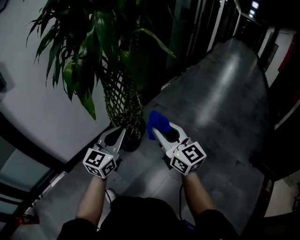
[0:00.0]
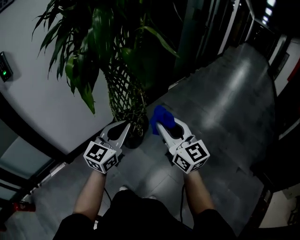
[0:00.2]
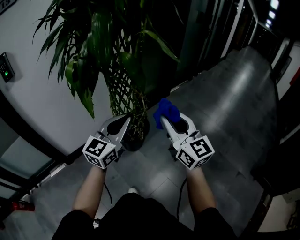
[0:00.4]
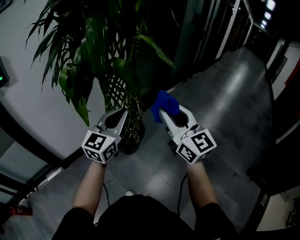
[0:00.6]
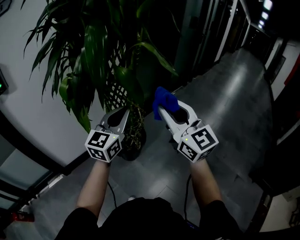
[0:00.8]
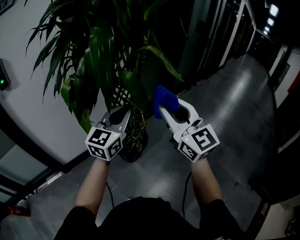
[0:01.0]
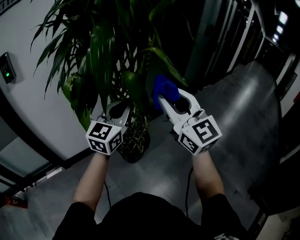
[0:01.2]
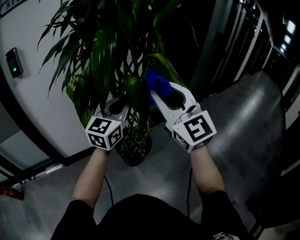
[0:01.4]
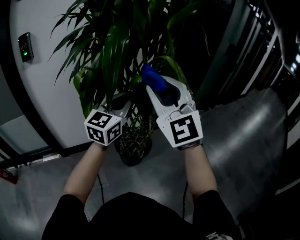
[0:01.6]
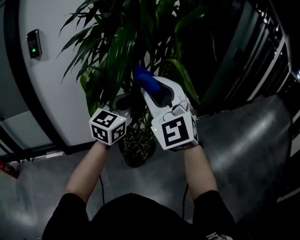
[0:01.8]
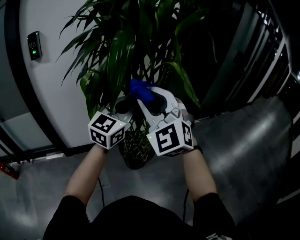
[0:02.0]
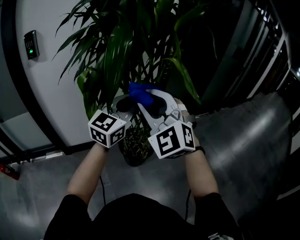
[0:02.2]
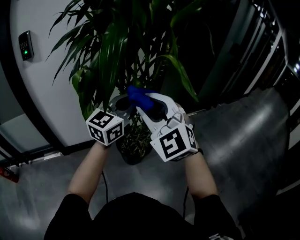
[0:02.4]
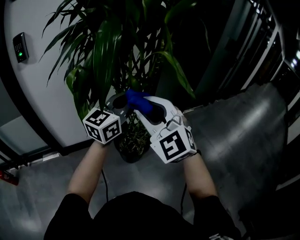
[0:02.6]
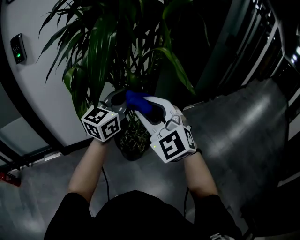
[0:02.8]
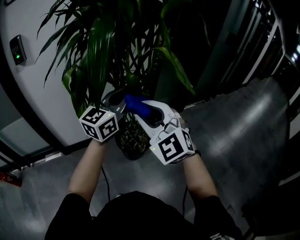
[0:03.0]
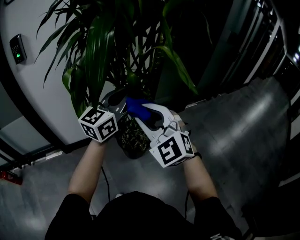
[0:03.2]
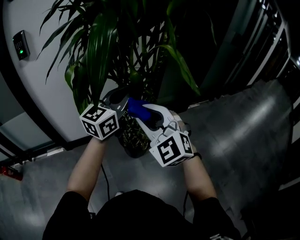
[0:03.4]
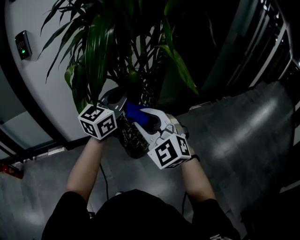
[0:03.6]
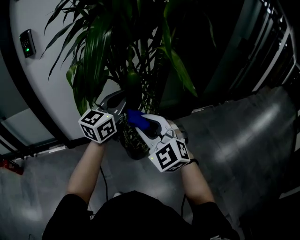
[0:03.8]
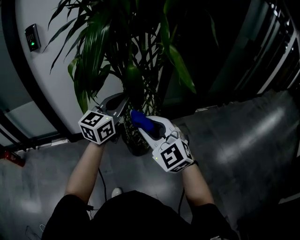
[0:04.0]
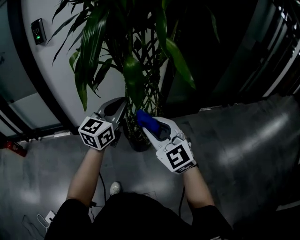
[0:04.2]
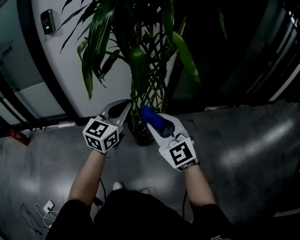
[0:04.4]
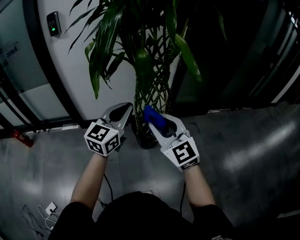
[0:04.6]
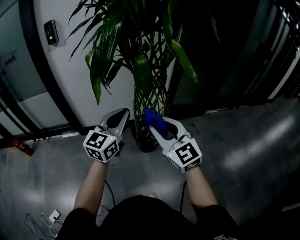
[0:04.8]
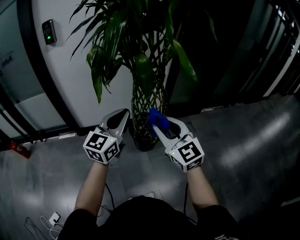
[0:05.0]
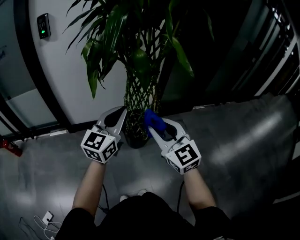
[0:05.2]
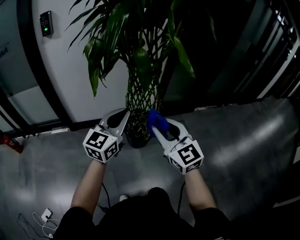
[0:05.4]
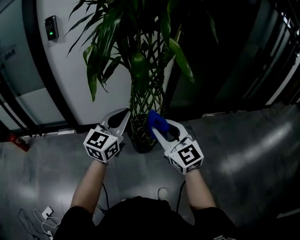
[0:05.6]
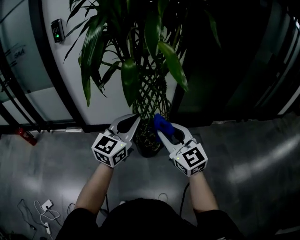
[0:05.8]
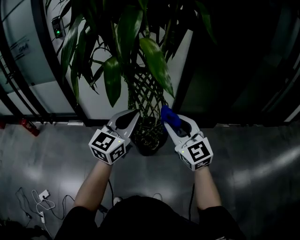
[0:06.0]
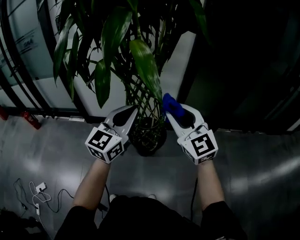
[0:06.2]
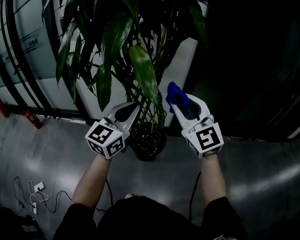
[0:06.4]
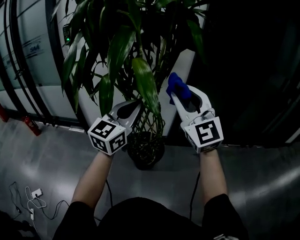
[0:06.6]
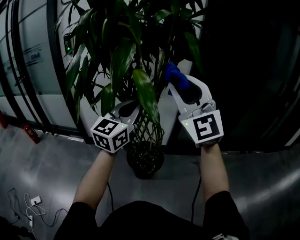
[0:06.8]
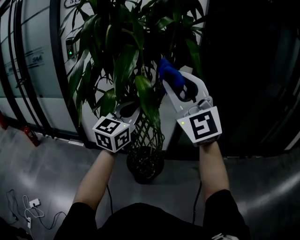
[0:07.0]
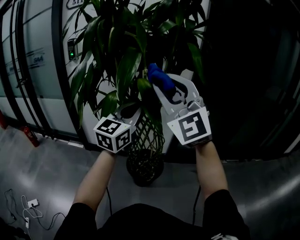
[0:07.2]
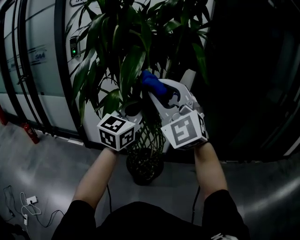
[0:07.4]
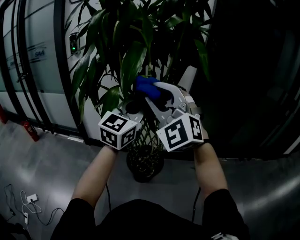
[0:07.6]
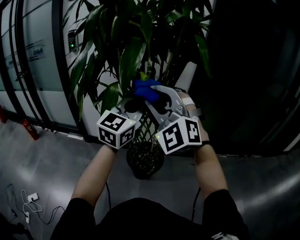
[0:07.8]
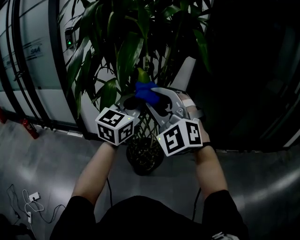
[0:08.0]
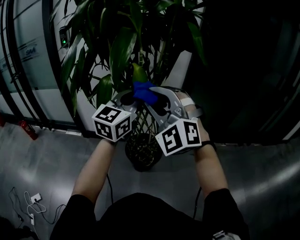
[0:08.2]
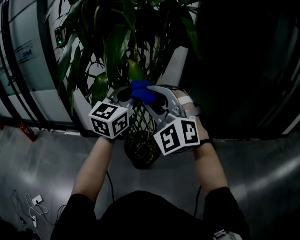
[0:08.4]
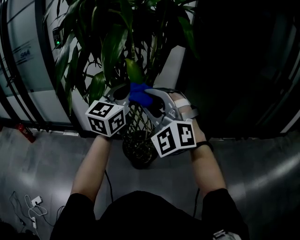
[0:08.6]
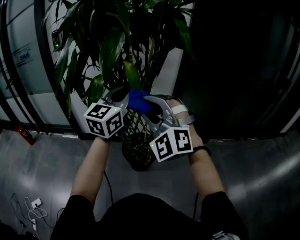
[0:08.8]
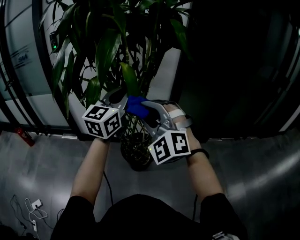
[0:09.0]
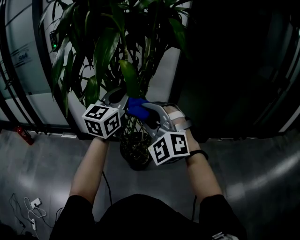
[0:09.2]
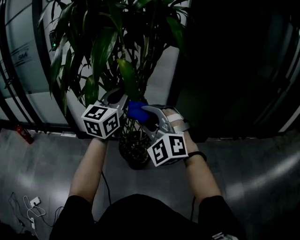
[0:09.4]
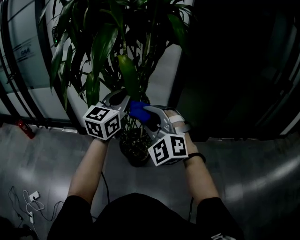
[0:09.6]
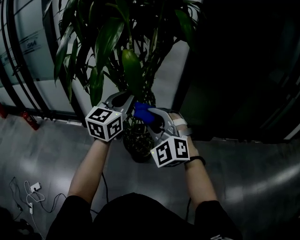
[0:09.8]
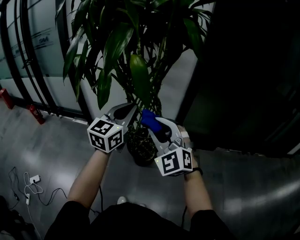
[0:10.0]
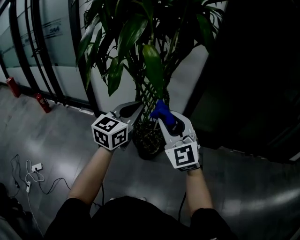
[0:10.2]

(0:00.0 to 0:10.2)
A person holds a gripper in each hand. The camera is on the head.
0:00.0 - 0:01.4: The left gripper shifts about 20 cm forward and upward, and changes its angle by roughly 20 degrees; the right gripper travels upward and forward by about 25 cm, and swivels approximately 30 degrees.
0:01.4 - 0:03.0: The right gripper goes approximately 10 cm downward, and rotates roughly 30 degrees.
0:03.0 - 0:04.4: The right gripper shifts approximately 10 cm downward, backward and to the right, and changes its angle by approximately 20 degrees. Meanwhile the left gripper heads downward and backward, covering some 10 cm, and swivels approximately 20 degrees.
0:04.4 - 0:05.8: Both grippers move to the right, roughly 10 cm.
0:05.8 - 0:07.2: The right gripper goes roughly 30 cm upward, and rotates some 40 degrees, while the left gripper is displaced upward, forward and to the right by some 20 cm.
0:07.2 - 0:08.8: The right gripper heads downward, covering approximately 15 cm, and changes its angle by some 30 degrees.
0:08.8 - 0:10.2: The right gripper moves downward and to the right, some 10 cm, and changes its angle by roughly 40 degrees. Meanwhile the left gripper travels downward and backward by some 10 cm.

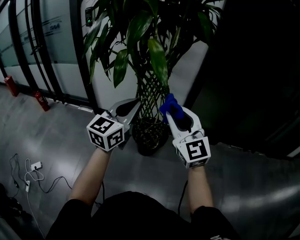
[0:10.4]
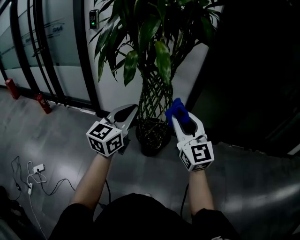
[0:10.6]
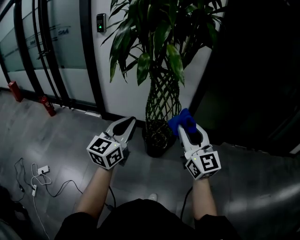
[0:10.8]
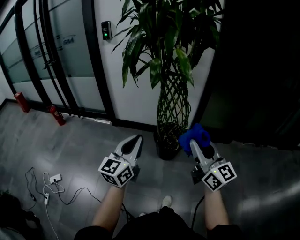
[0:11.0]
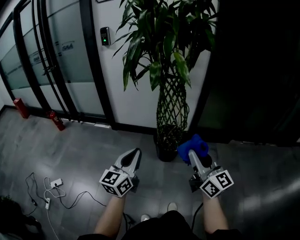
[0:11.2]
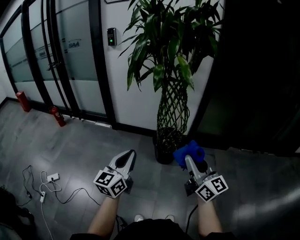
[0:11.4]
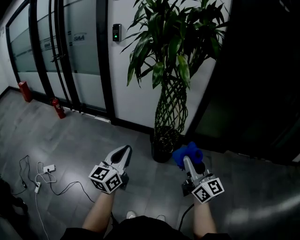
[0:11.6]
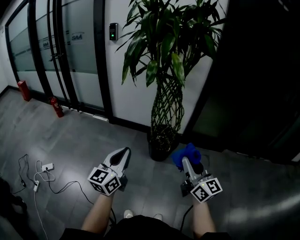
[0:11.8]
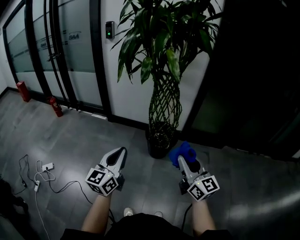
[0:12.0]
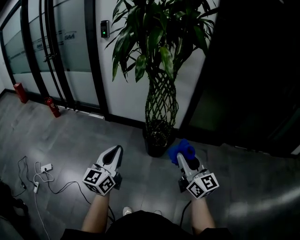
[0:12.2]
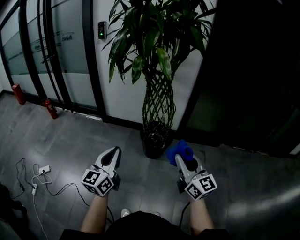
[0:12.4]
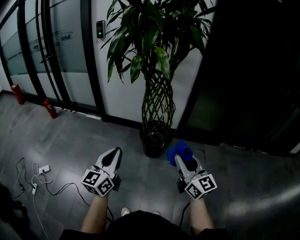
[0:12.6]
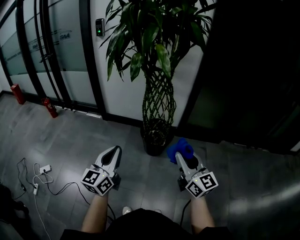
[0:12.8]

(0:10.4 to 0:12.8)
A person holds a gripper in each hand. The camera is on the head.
0:10.4 - 0:11.6: The left gripper heads backward and to the left, covering roughly 30 cm. The right gripper is displaced backward by roughly 25 cm, and changes its angle by about 30 degrees.
0:11.6 - 0:12.8: Both grippers travel together to the right, some 5 cm.

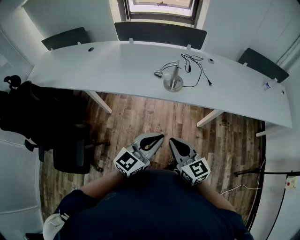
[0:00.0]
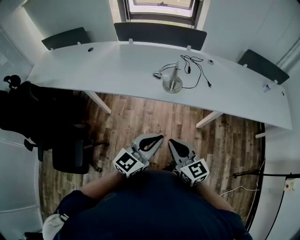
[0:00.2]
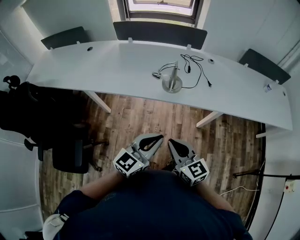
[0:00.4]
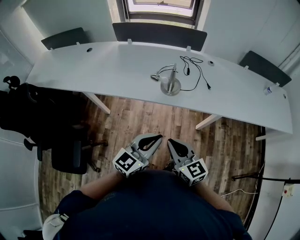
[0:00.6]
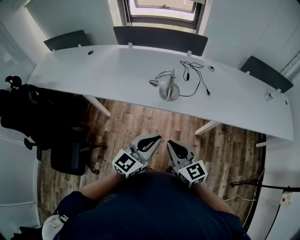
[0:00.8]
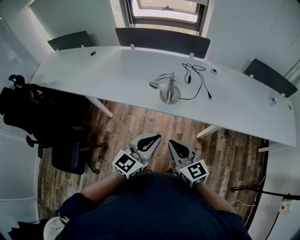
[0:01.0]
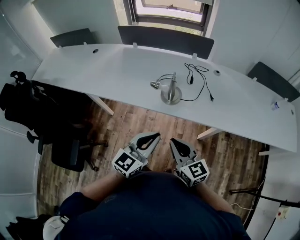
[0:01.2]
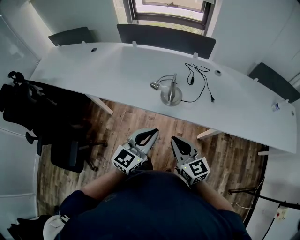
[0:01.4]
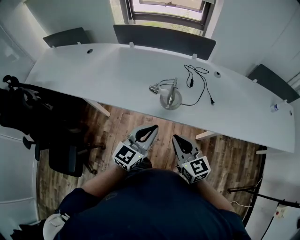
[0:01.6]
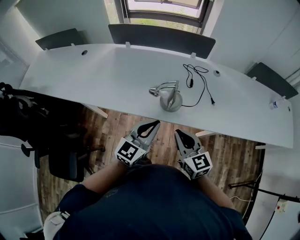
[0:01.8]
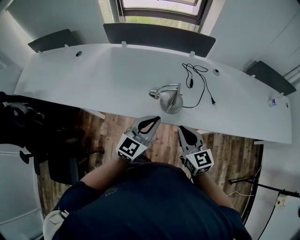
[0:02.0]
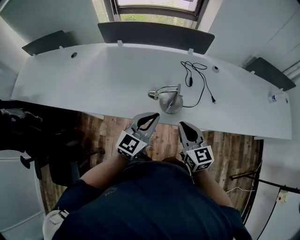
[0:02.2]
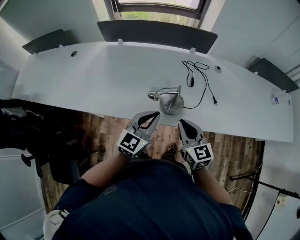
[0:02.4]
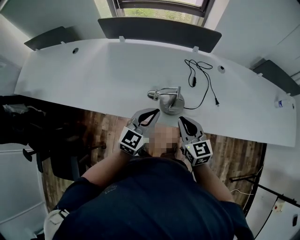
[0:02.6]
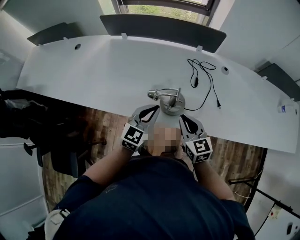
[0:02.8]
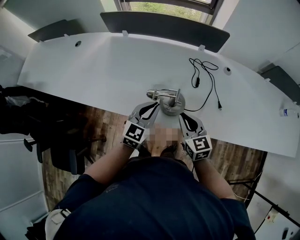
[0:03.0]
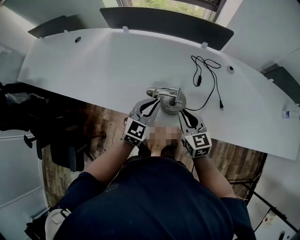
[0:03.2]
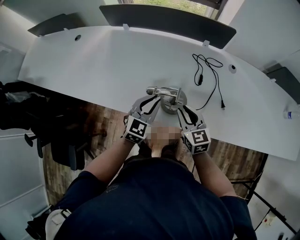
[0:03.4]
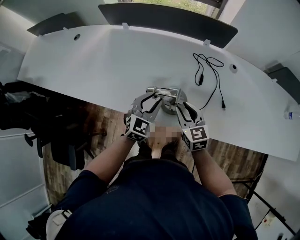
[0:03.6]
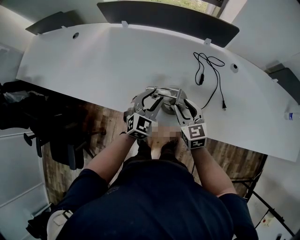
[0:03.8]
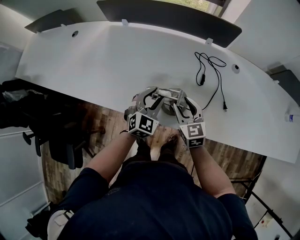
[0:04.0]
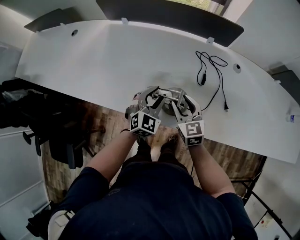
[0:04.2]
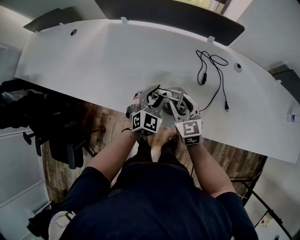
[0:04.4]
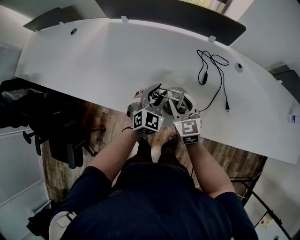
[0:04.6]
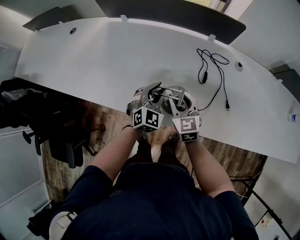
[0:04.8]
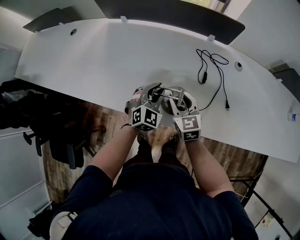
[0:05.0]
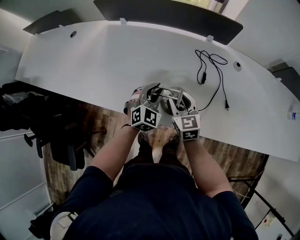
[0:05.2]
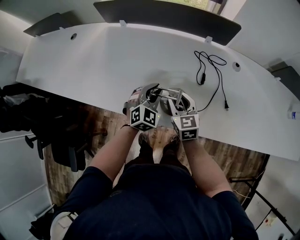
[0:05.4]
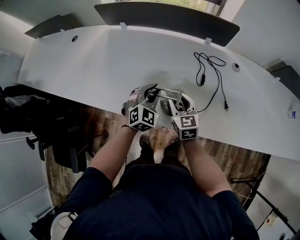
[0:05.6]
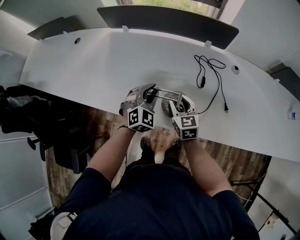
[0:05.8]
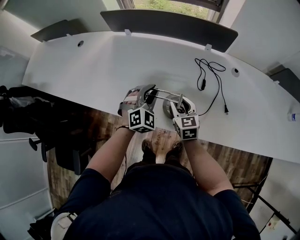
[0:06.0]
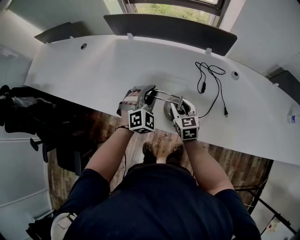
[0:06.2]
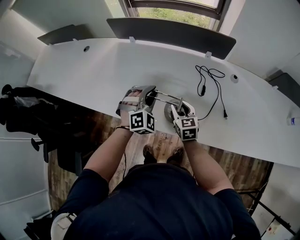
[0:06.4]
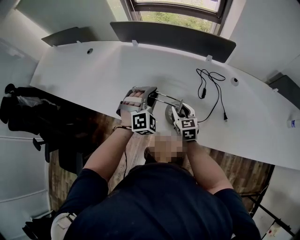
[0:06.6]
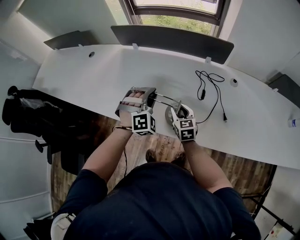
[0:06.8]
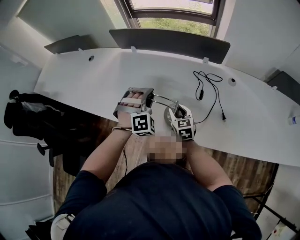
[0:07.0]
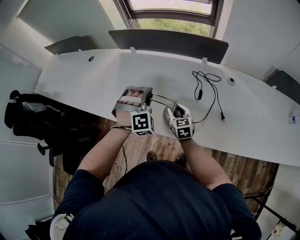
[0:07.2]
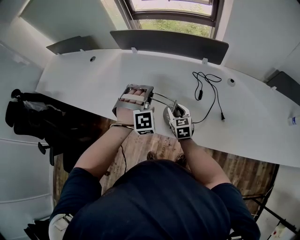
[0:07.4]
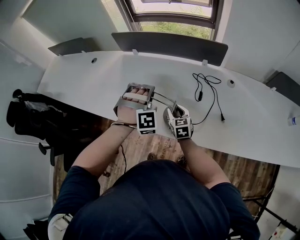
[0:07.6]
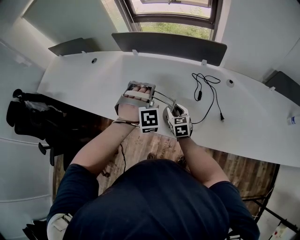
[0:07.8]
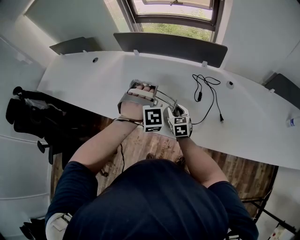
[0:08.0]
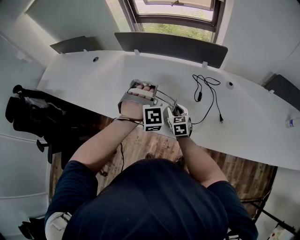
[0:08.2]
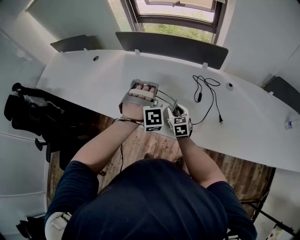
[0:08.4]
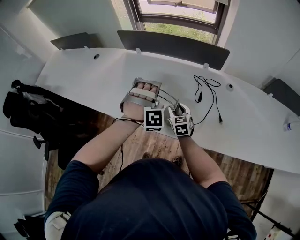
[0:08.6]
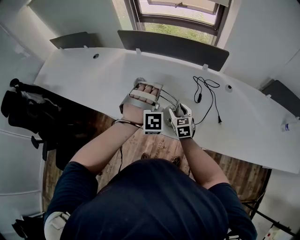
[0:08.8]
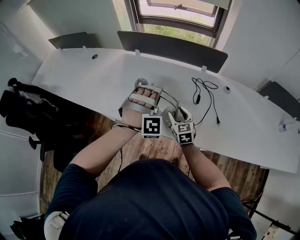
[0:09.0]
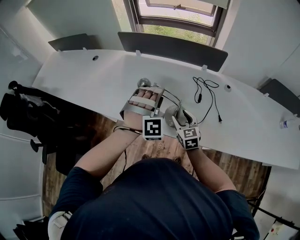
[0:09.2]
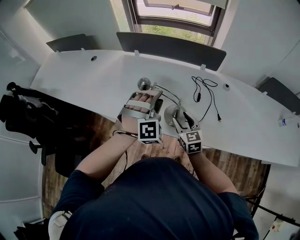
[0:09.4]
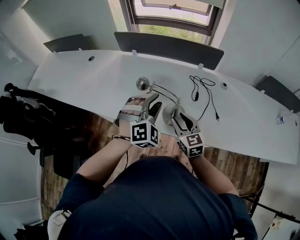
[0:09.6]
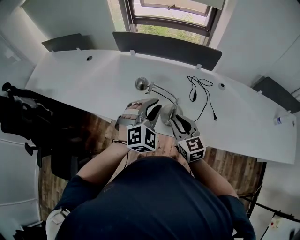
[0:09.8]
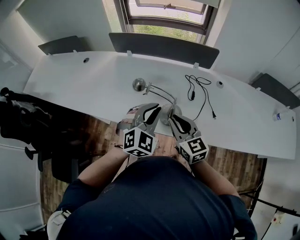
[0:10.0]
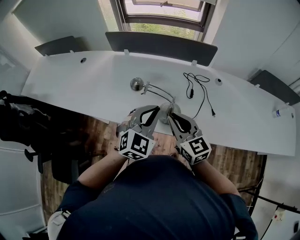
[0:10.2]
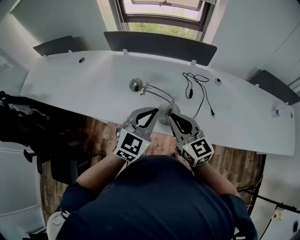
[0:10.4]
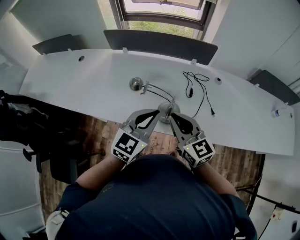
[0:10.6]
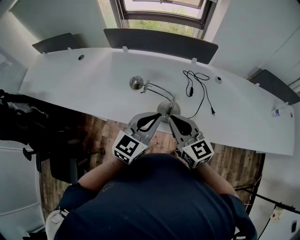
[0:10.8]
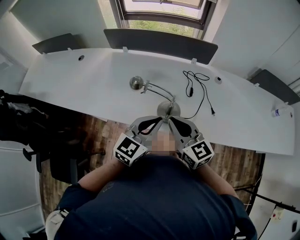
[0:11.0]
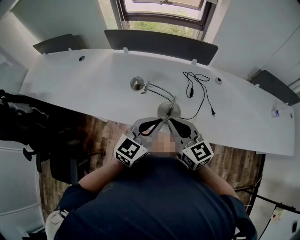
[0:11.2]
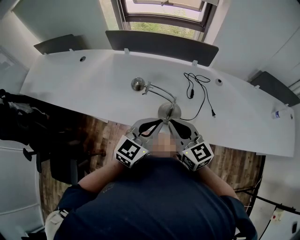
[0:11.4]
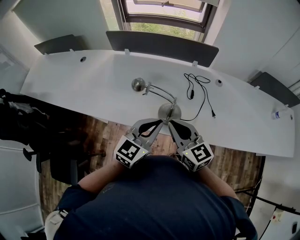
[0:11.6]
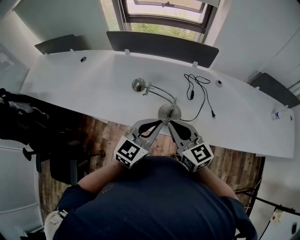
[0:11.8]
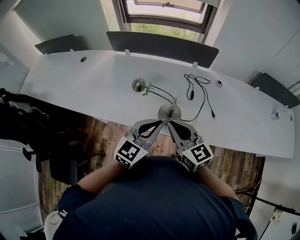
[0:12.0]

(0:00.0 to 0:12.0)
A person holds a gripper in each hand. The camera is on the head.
0:00.0 - 0:01.6: The grippers both shift forward by some 20 cm.
0:01.6 - 0:03.0: The left gripper shifts approximately 25 cm forward and downward. The right gripper goes about 20 cm forward.
0:03.0 - 0:04.4: The right gripper is displaced forward and downward by roughly 10 cm, and opens its fingers. The left gripper heads downward and forward, covering roughly 10 cm, rotates about 30 degrees, and opens its fingers.
0:04.4 - 0:06.0: The left gripper changes place by roughly 5 cm.
0:06.0 - 0:07.6: The left gripper is displaced upward by approximately 10 cm, and swivels roughly 40 degrees.
0:07.6 - 0:09.0: There are only small adjustments of the grippers.
0:09.0 - 0:10.4: The right gripper heads upward and backward, covering approximately 20 cm, changes its angle by approximately 20 degrees, and closes up. Meanwhile the left gripper moves backward and upward, about 10 cm, rotates around the line of its fingers by about 70 degrees, counterclockwise from behind, and closes its fingers.
0:10.4 - 0:12.0: There are only small adjustments of the grippers.
